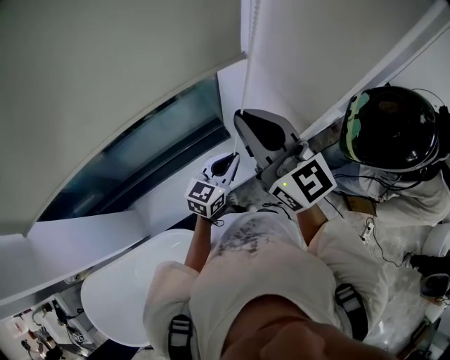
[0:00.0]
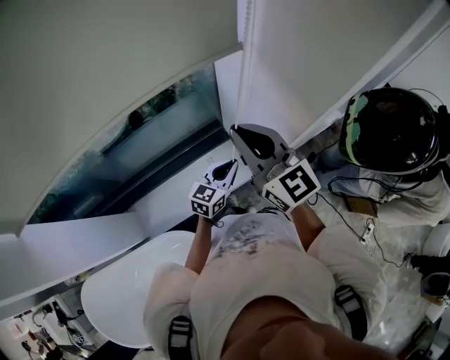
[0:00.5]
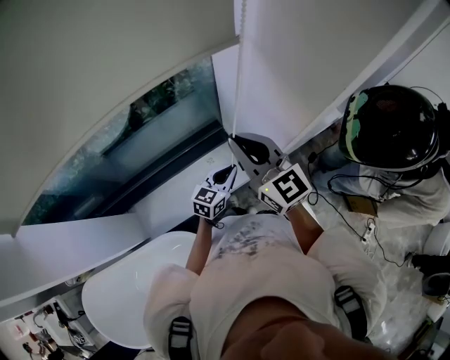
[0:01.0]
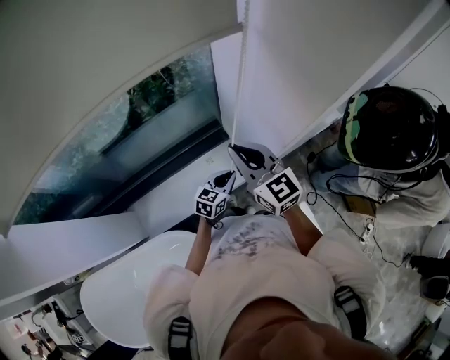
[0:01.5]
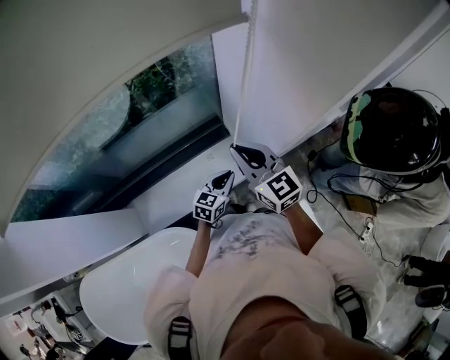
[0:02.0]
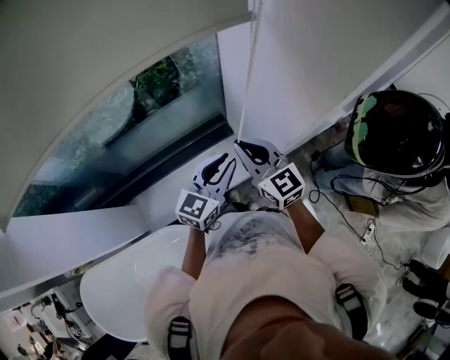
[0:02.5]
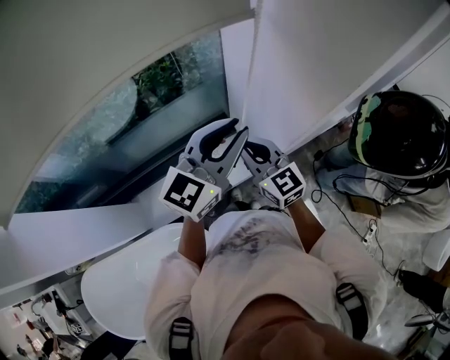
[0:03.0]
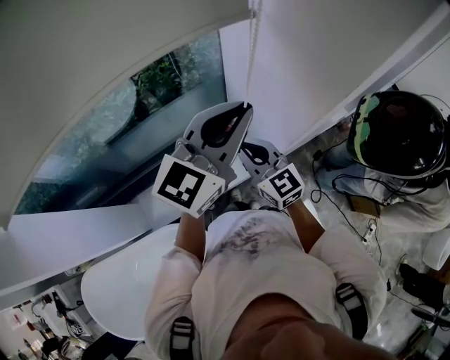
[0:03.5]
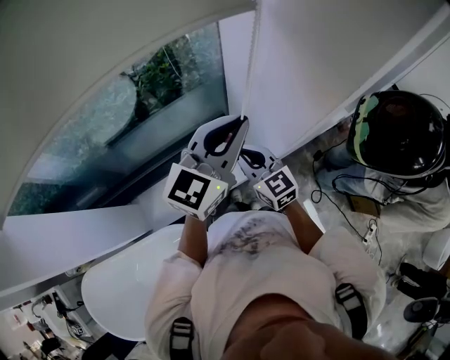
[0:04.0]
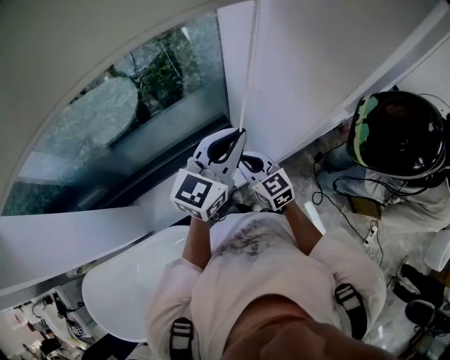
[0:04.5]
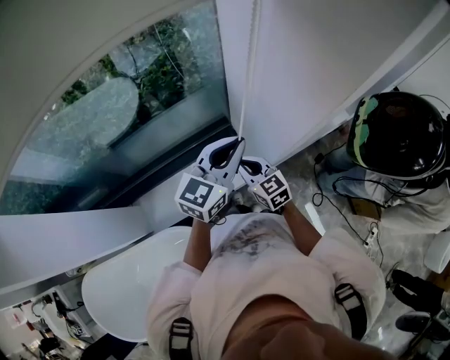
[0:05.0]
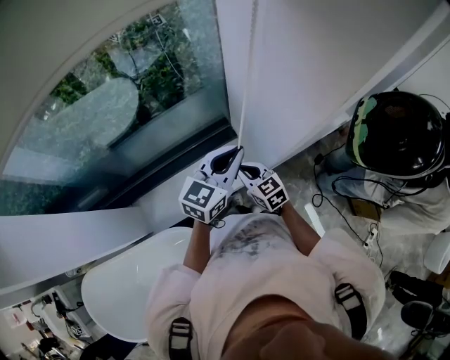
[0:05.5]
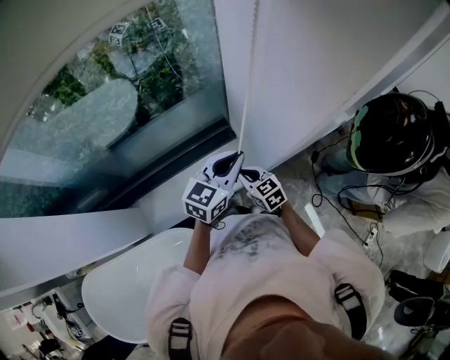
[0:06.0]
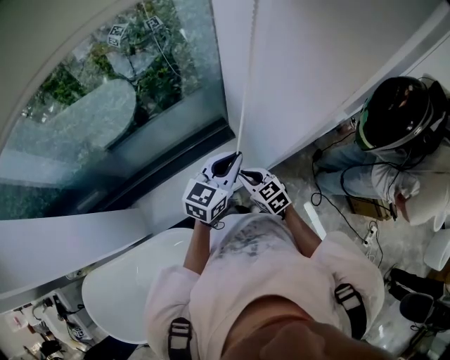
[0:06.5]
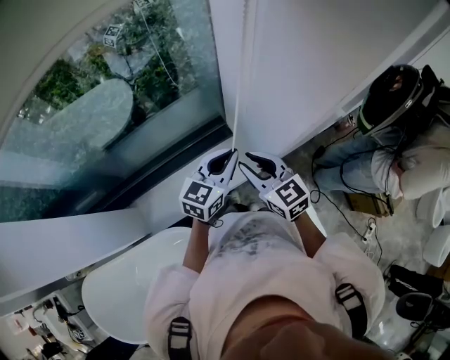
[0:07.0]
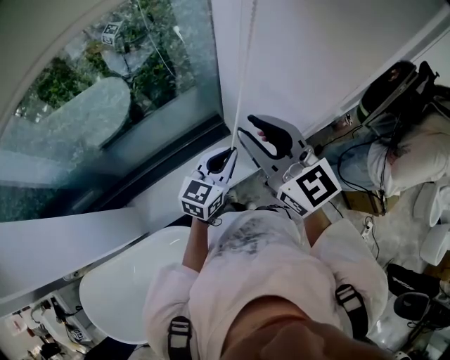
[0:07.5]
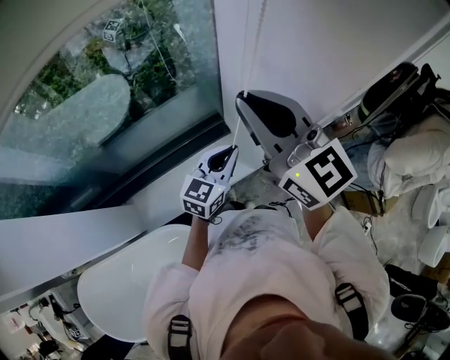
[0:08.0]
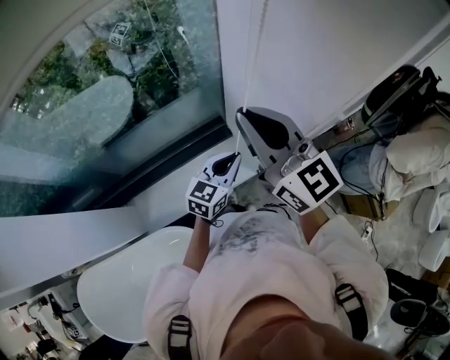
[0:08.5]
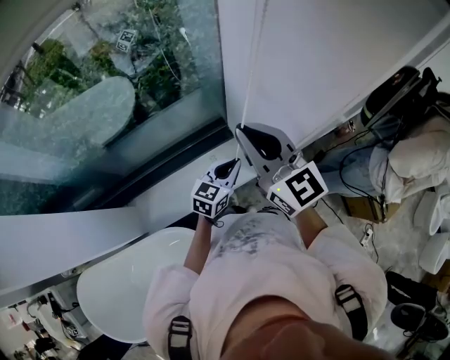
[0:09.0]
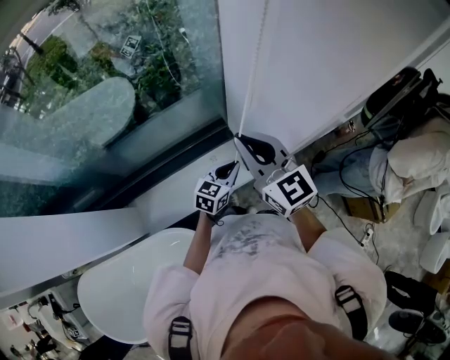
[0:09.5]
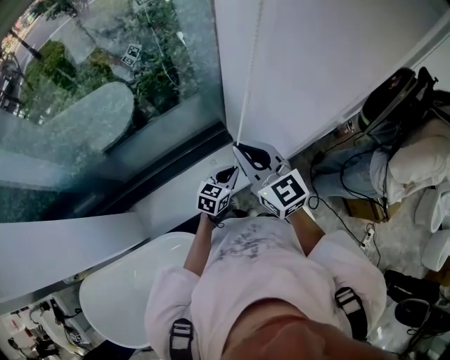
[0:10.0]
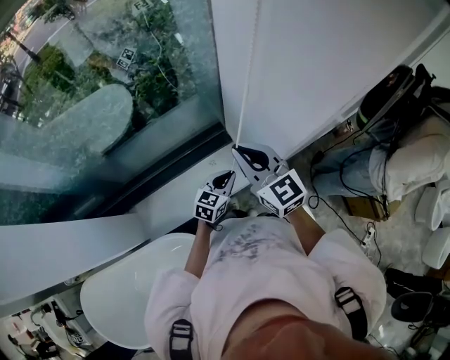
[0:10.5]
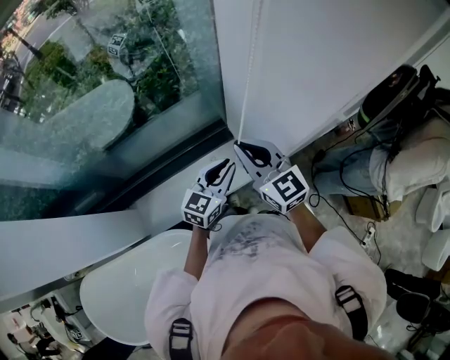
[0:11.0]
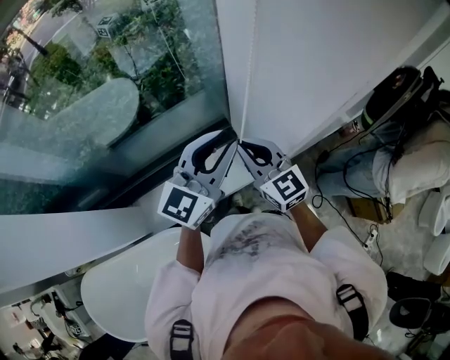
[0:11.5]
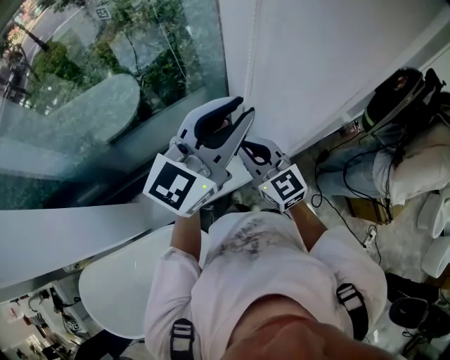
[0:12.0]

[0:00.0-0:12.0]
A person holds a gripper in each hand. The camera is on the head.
0:00.0 to 0:02.0: The grippers both shift downward by roughly 15 cm.
0:02.0 to 0:04.0: The left gripper heads upward, covering some 35 cm, and rotates roughly 30 degrees.
0:04.0 to 0:06.0: Both grippers move downward, some 15 cm. The right gripper turns by some 20 degrees.
0:06.0 to 0:08.0: The right gripper goes about 40 cm upward, angles its fingers upward, by roughly 40 degrees, and opens, then closes again.
0:08.0 to 0:10.0: The two grippers go roughly 15 cm downward.
0:10.0 to 0:12.0: The left gripper is displaced upward by some 40 cm, and tips its fingers upward by some 40 degrees.

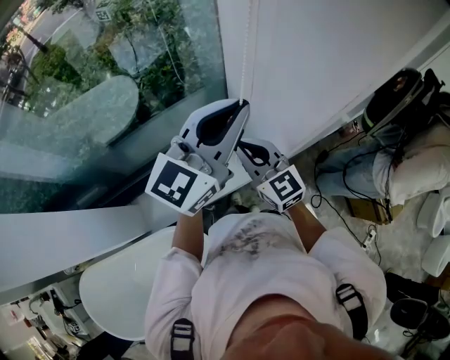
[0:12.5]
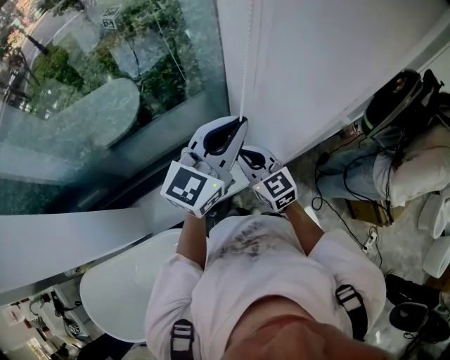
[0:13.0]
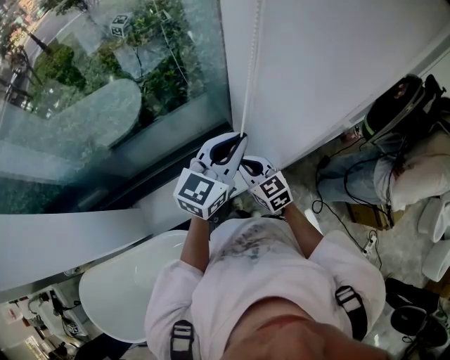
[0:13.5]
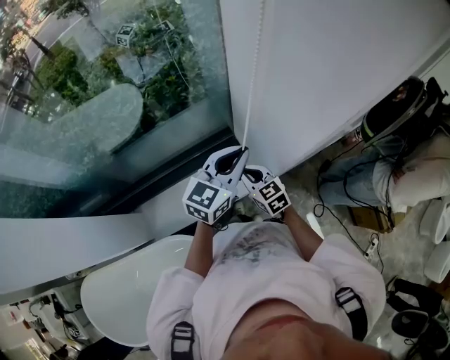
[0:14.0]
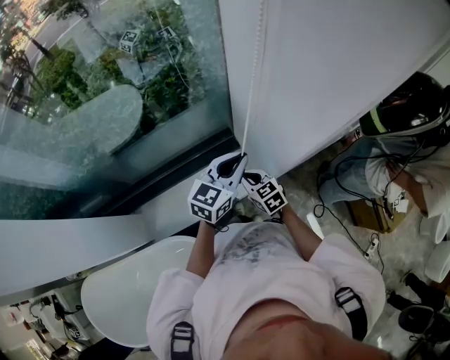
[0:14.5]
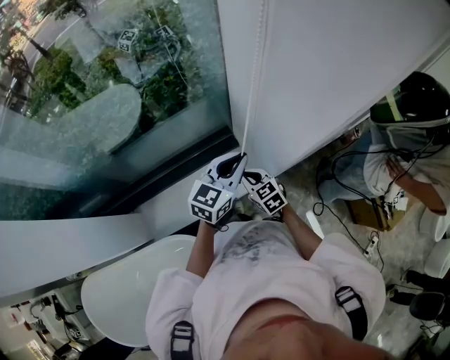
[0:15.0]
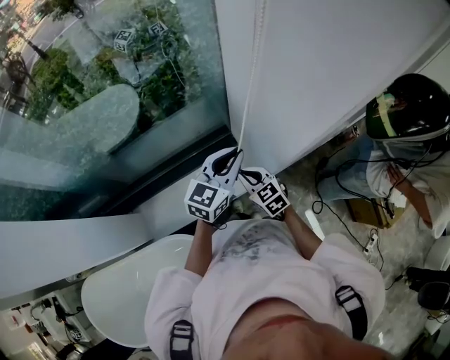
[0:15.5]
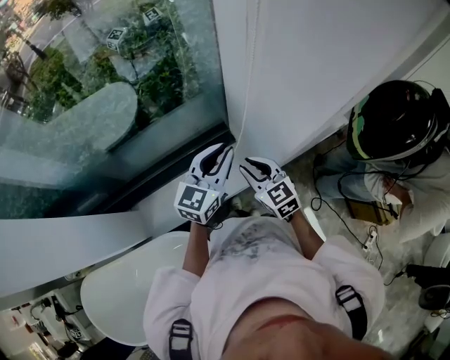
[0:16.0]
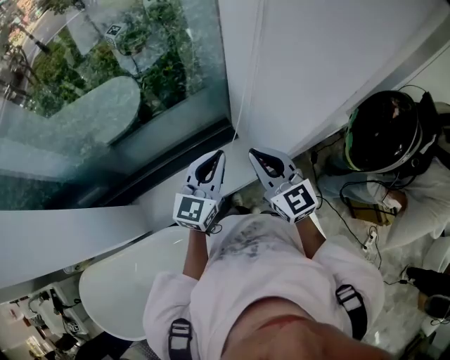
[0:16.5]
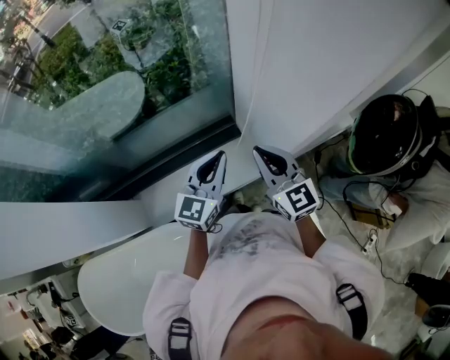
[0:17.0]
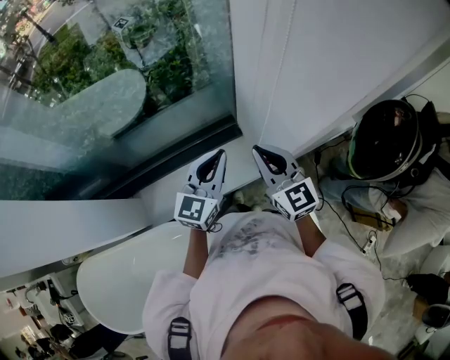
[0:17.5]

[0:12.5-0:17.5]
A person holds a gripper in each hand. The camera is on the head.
0:12.5 to 0:15.0: The two grippers go roughly 20 cm downward. The left gripper changes its angle by roughly 20 degrees; the right gripper swivels some 30 degrees.
0:15.0 to 0:17.5: The left gripper heads to the left, covering roughly 5 cm. The right gripper is displaced upward by roughly 20 cm, and changes its angle by roughly 30 degrees.

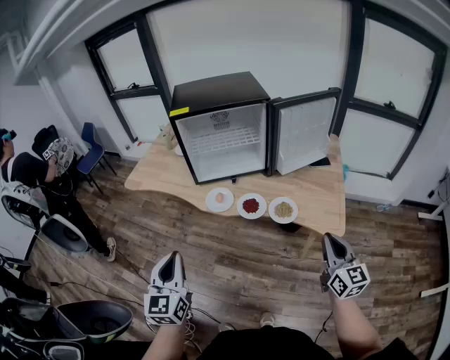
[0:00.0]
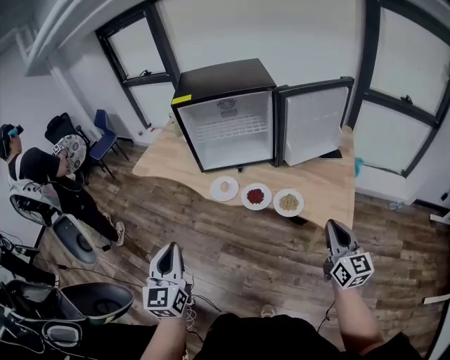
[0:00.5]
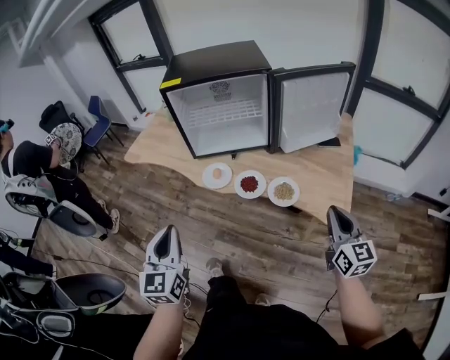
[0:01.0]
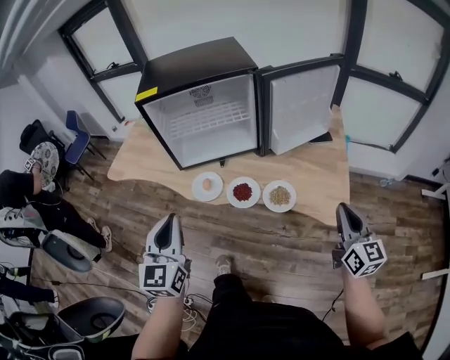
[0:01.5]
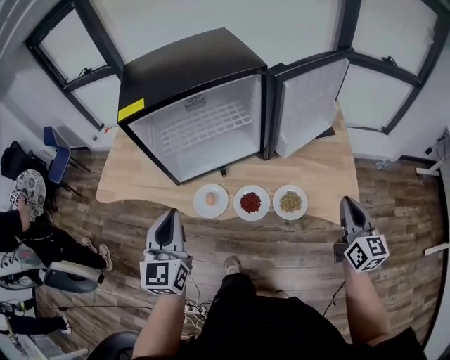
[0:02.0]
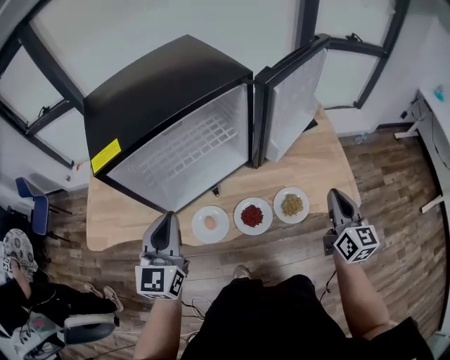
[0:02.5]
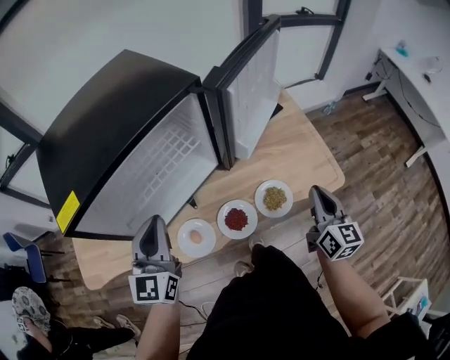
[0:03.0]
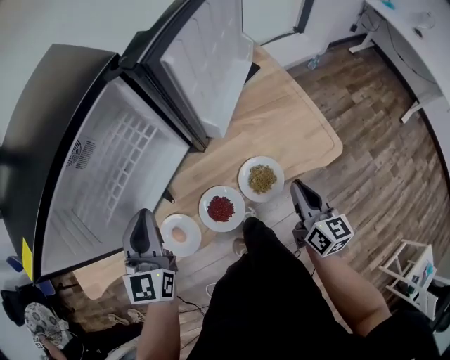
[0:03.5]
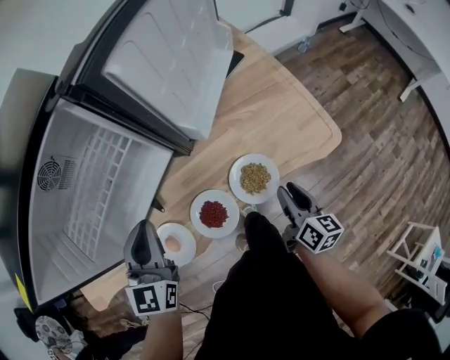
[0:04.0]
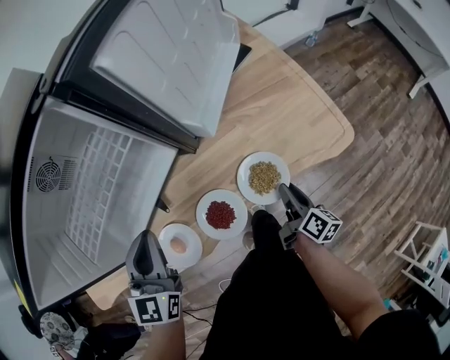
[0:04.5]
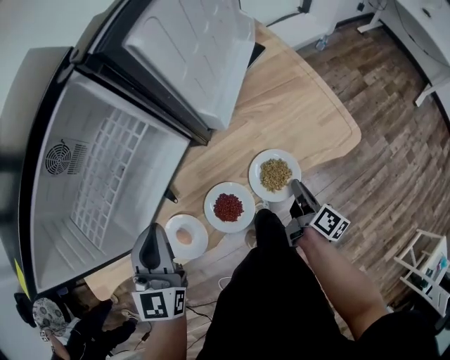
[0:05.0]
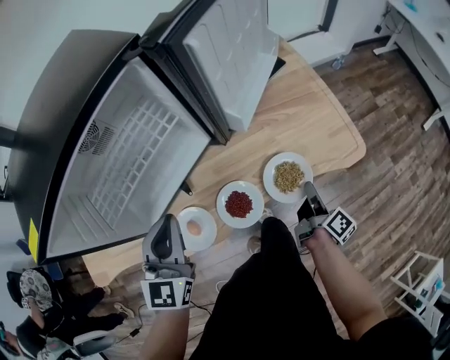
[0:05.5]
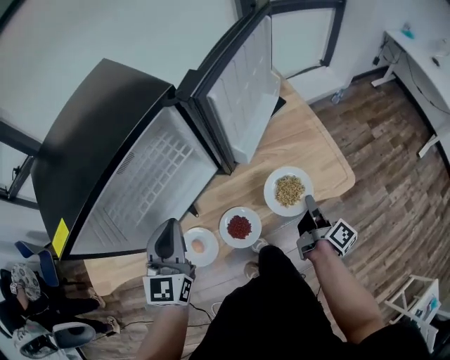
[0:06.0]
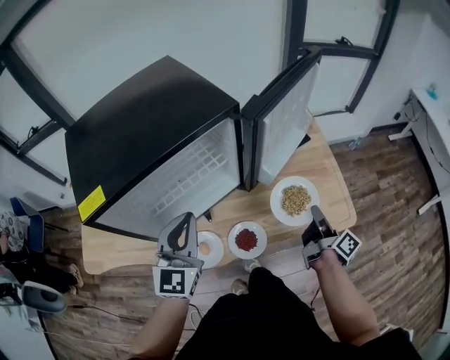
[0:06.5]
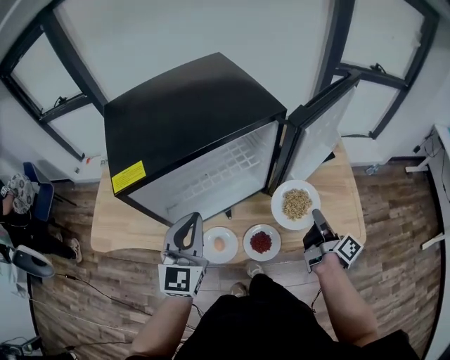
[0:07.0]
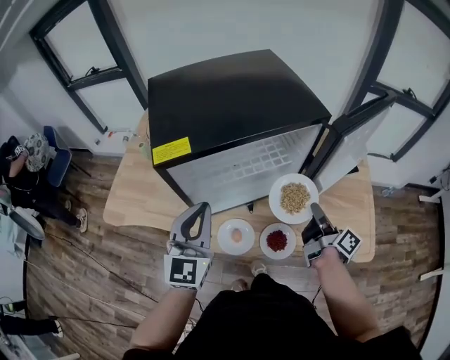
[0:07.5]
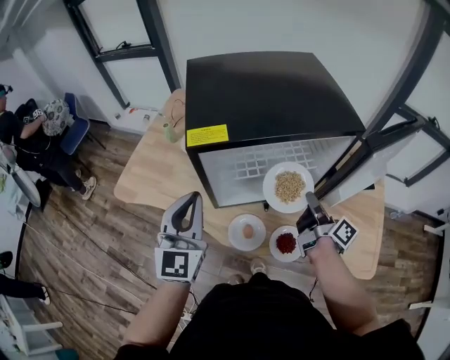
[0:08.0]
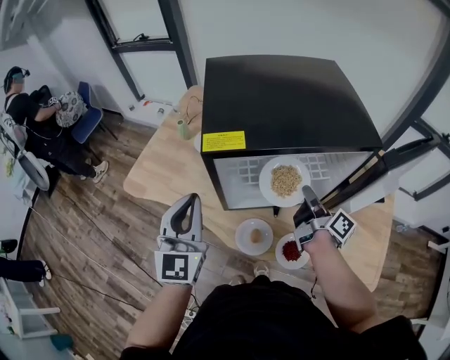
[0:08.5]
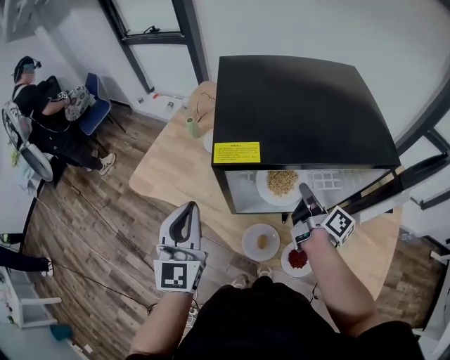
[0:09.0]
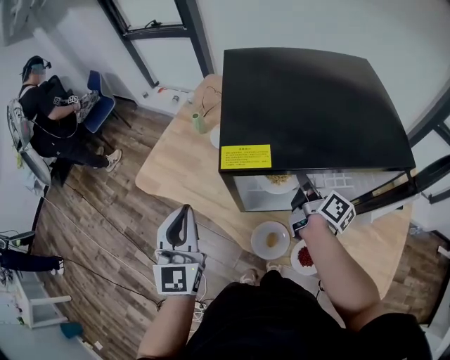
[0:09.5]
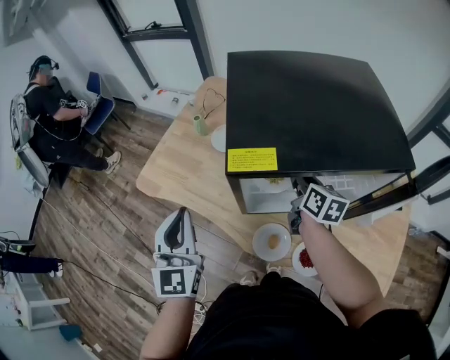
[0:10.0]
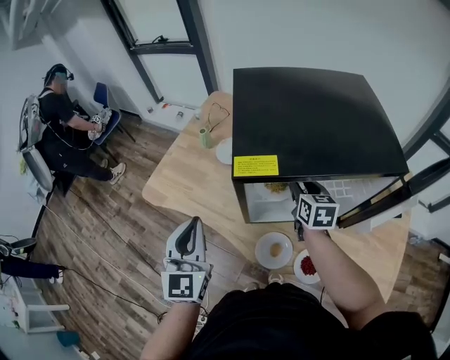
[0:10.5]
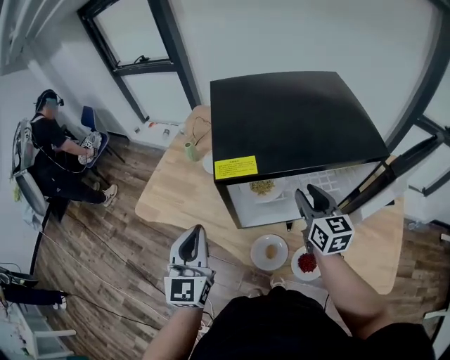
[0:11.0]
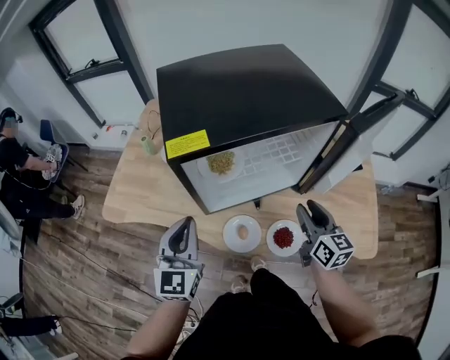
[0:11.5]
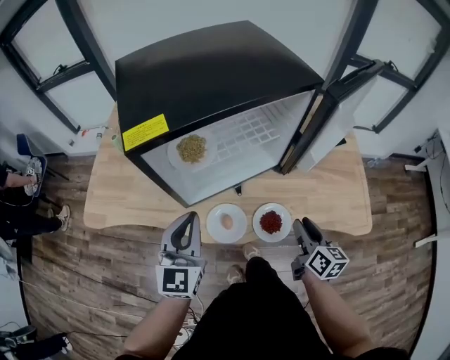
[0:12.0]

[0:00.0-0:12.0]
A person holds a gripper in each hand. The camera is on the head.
0:00.0 to 0:02.0: The left gripper shifts some 25 cm forward. The right gripper travels forward by about 15 cm.
0:02.0 to 0:04.0: The right gripper moves downward, about 25 cm, rotates some 40 degrees, and opens; the left gripper moves approximately 25 cm, and changes its angle by roughly 30 degrees.
0:04.0 to 0:06.0: Both grippers move upward, approximately 5 cm. The right gripper changes its angle by some 40 degrees, and closes.
0:06.0 to 0:08.0: The left gripper shifts by roughly 25 cm, and turns by some 30 degrees, while the right gripper changes place by approximately 35 cm, and turns by some 40 degrees.
0:08.0 to 0:10.0: The left gripper goes approximately 10 cm to the left. Meanwhile the right gripper is displaced forward and to the left by about 20 cm, and rotates about 50 degrees.
0:10.0 to 0:12.0: The left gripper ends up approximately 20 cm from where it was, and rotates roughly 30 degrees. The right gripper ends up about 35 cm from where it was, swivels about 20 degrees, and opens up.
